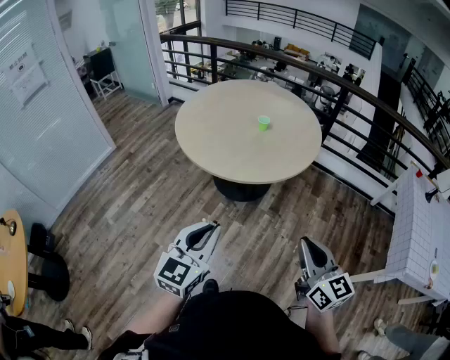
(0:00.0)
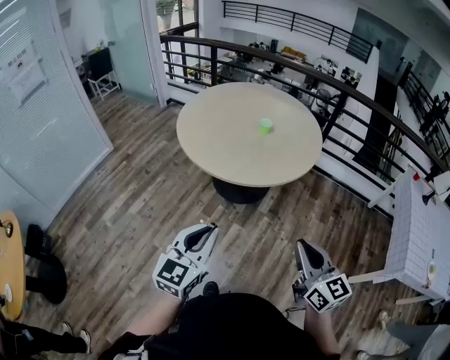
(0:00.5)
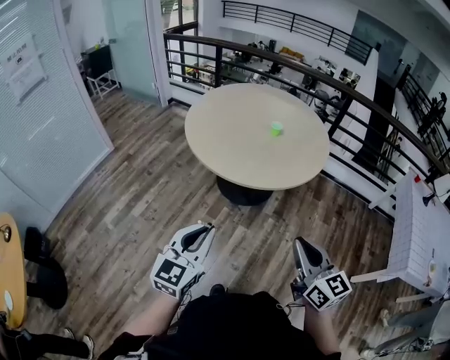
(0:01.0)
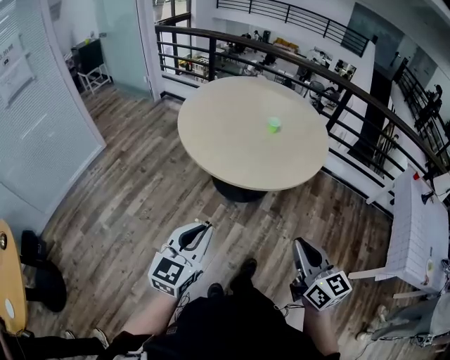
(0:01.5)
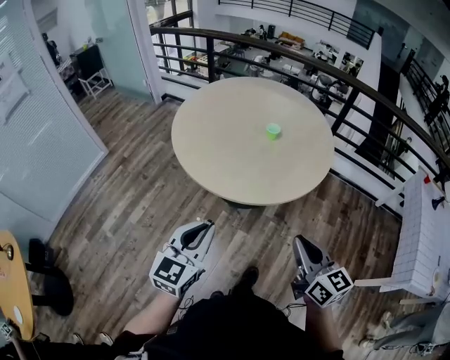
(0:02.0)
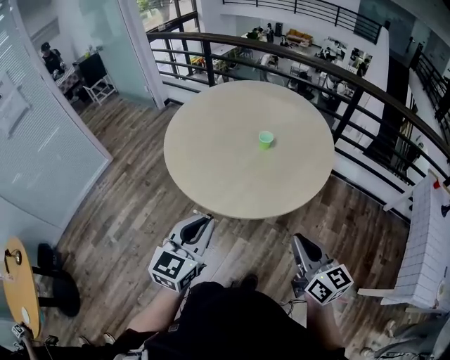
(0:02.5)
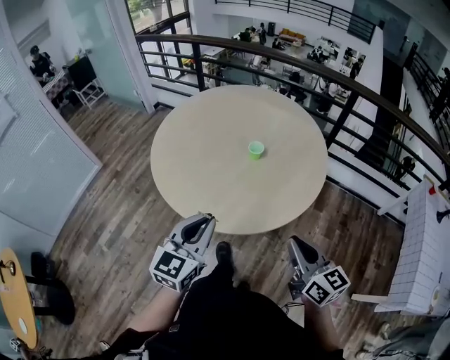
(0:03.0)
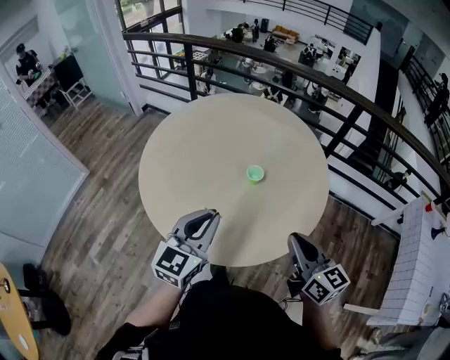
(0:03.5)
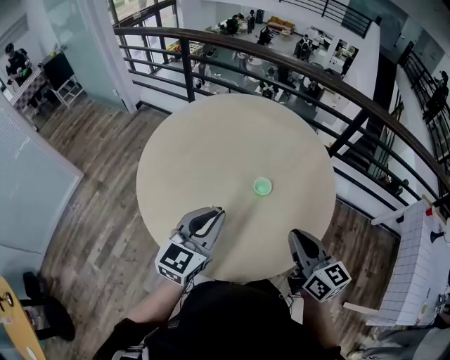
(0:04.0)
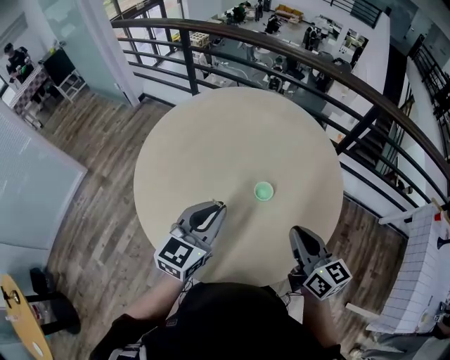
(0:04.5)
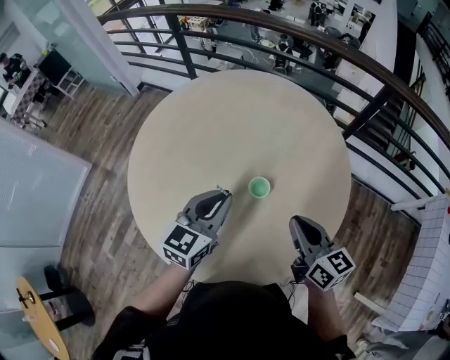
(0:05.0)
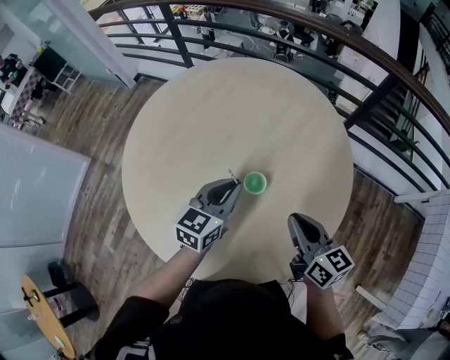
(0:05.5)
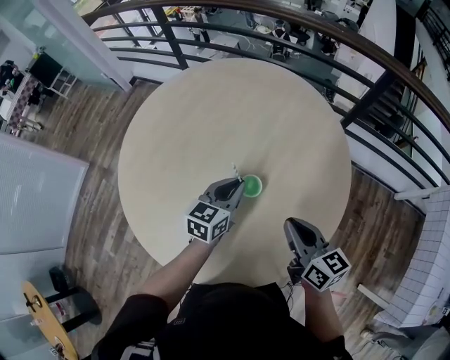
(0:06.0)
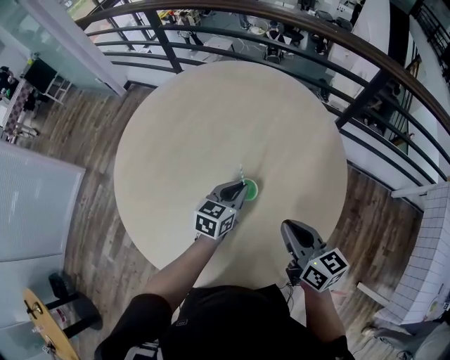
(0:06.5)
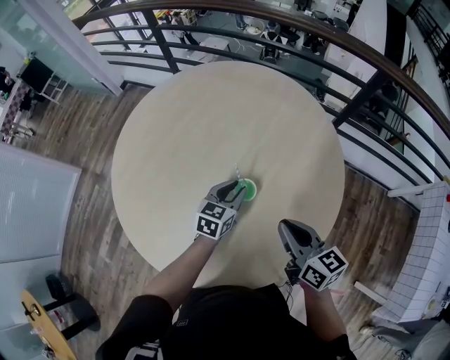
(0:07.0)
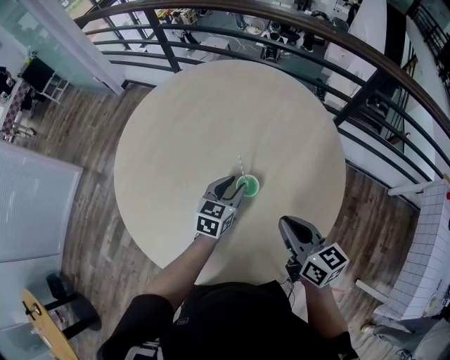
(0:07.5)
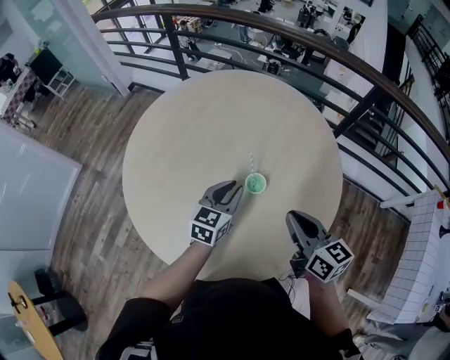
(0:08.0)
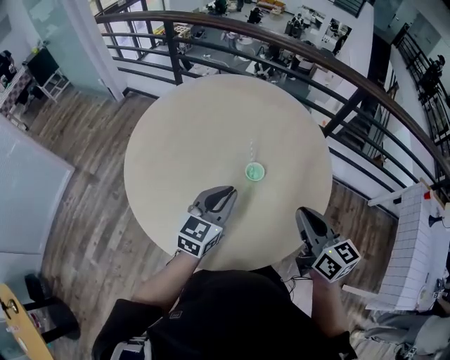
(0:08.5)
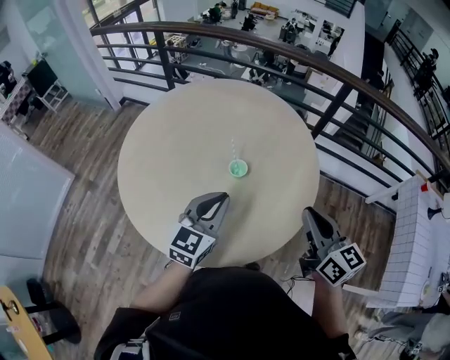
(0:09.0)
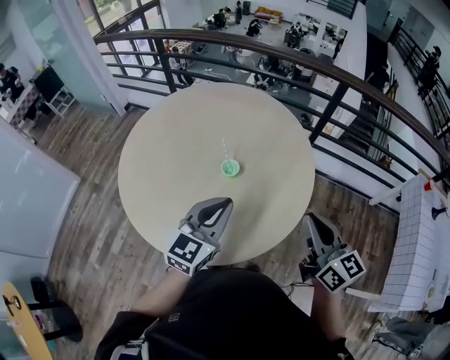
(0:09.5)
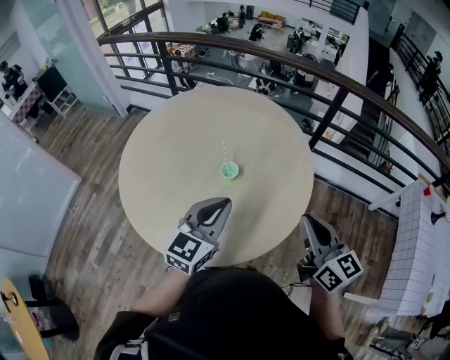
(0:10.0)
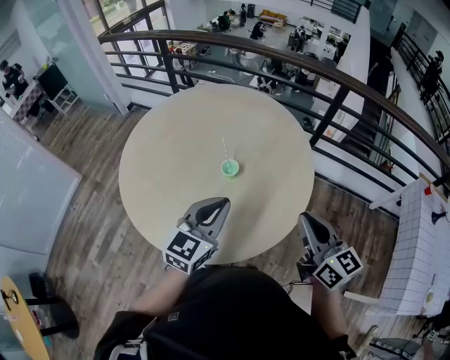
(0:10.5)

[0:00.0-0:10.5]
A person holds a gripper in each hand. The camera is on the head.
0:00.0 to 0:02.0: The grippers both shift forward and to the left by some 20 cm.
0:02.0 to 0:04.0: Both grippers travel together forward, about 40 cm.
0:04.0 to 0:06.5: The right gripper travels downward, forward and to the right by approximately 20 cm, while the left gripper goes about 35 cm downward, forward and to the right, and turns by some 30 degrees.
0:06.5 to 0:08.5: The left gripper is displaced upward, backward and to the left by roughly 25 cm, and opens, then closes once more, while the right gripper is displaced upward and backward by approximately 15 cm.
0:08.5 to 0:10.5: The left gripper travels to the right, backward and upward by some 15 cm, while the right gripper goes roughly 15 cm to the right and backward.

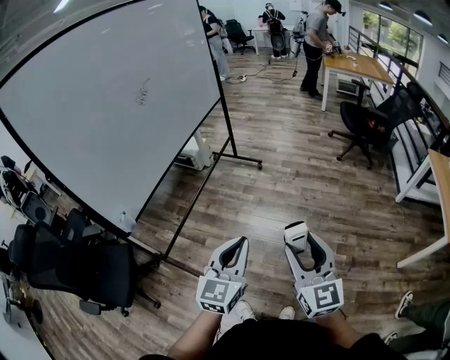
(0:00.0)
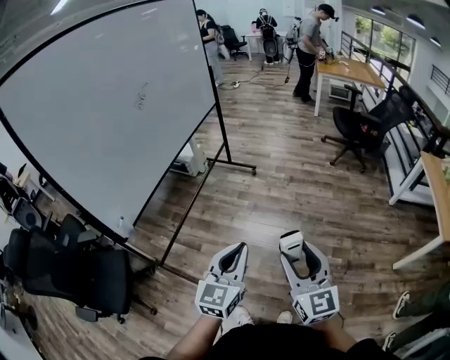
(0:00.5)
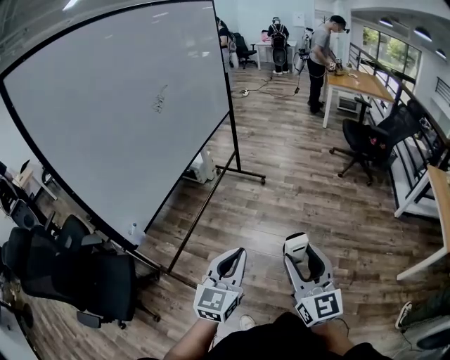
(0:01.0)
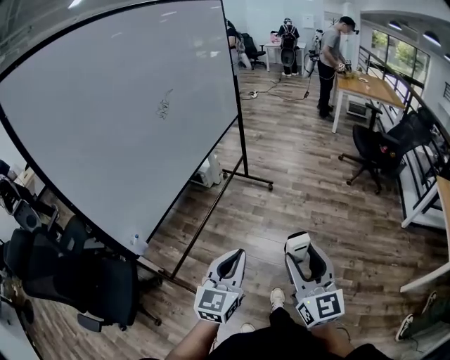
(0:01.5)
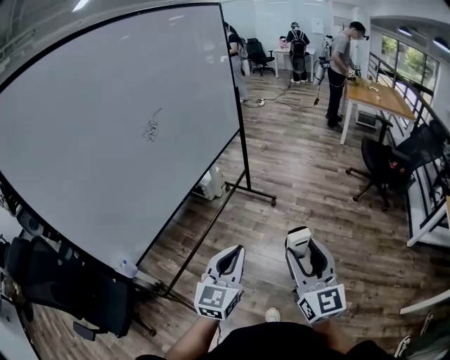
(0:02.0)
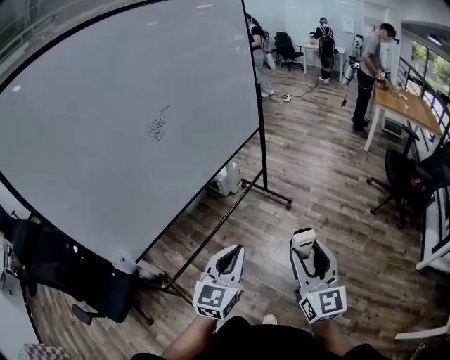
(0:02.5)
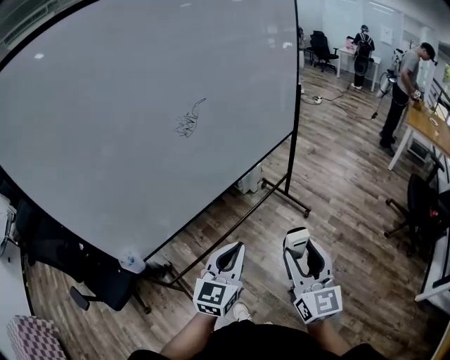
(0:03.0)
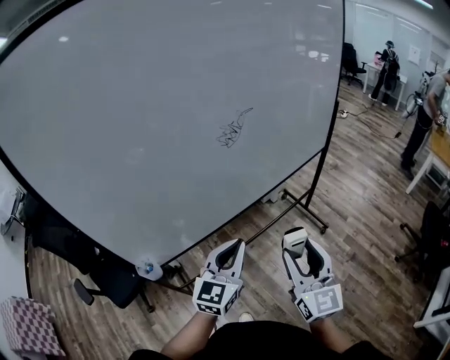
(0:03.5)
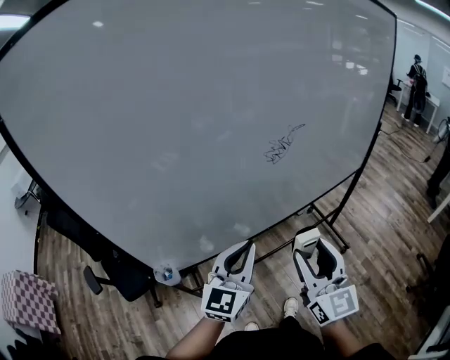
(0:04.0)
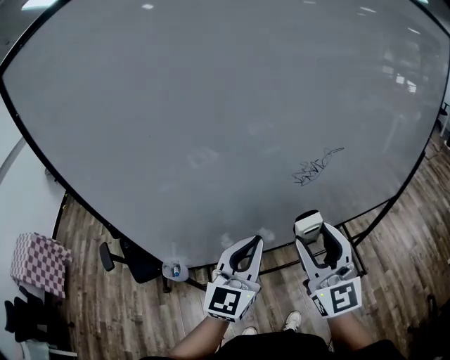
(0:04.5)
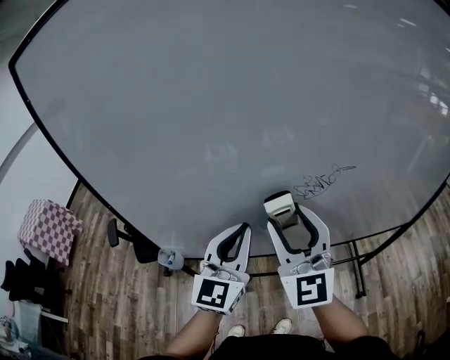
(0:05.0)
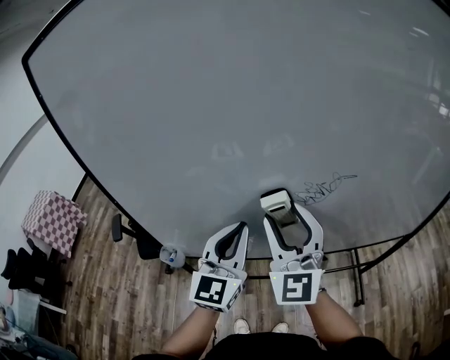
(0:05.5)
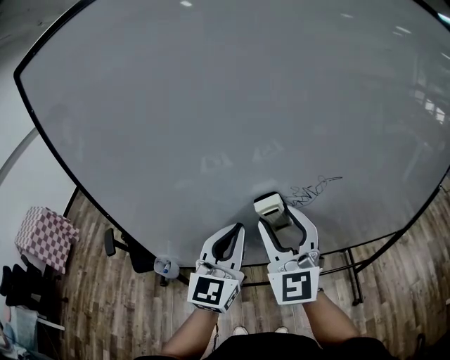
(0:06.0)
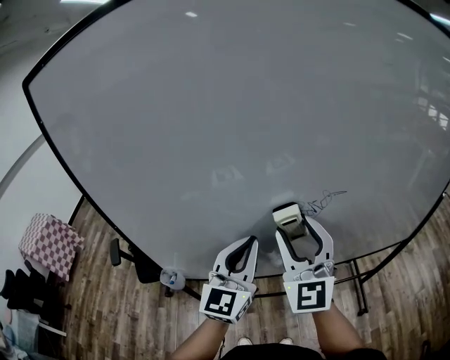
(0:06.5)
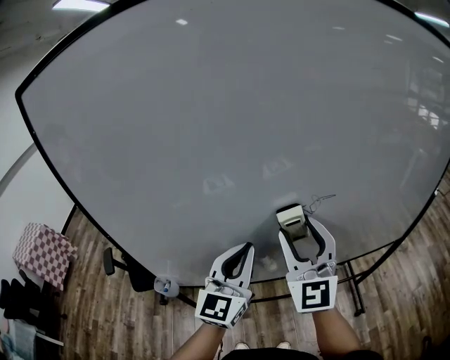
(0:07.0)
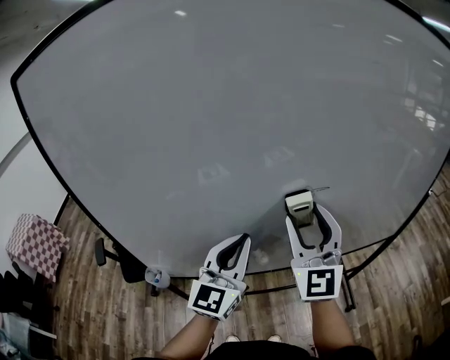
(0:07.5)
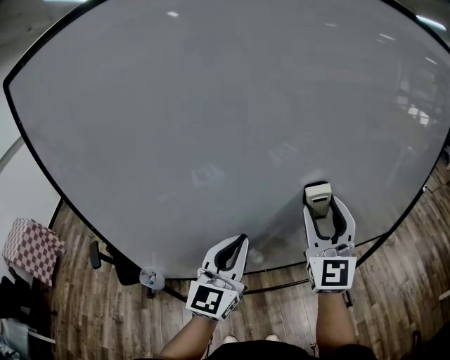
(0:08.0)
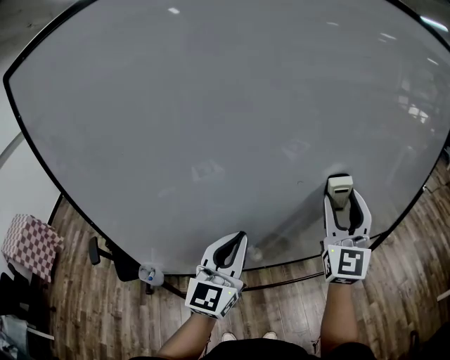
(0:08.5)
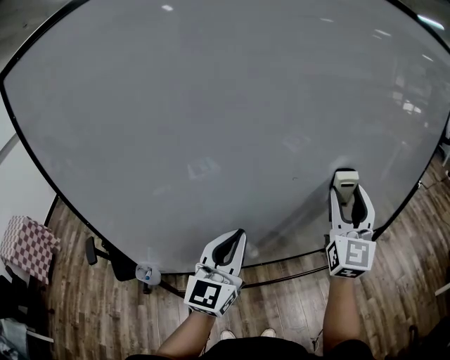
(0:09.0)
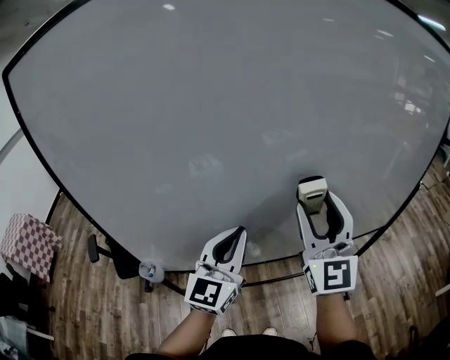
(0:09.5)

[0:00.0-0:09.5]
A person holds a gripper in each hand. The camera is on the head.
0:00.0 to 0:02.0: Both grippers move forward, about 25 cm.
0:02.0 to 0:04.0: The left gripper shifts by approximately 35 cm, and rotates roughly 40 degrees. The right gripper shifts by roughly 40 cm, and changes its angle by approximately 40 degrees.
0:04.0 to 0:05.5: The left gripper shifts by roughly 10 cm, and turns by about 30 degrees. Meanwhile the right gripper ends up roughly 20 cm from where it was, and rotates about 40 degrees.
0:05.5 to 0:07.5: The right gripper travels to the right by some 10 cm. The left gripper moves to the right, roughly 5 cm.
0:07.5 to 0:09.5: The right gripper goes to the right and returns, some 10 cm each way.

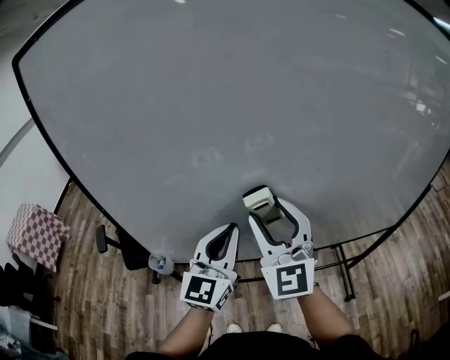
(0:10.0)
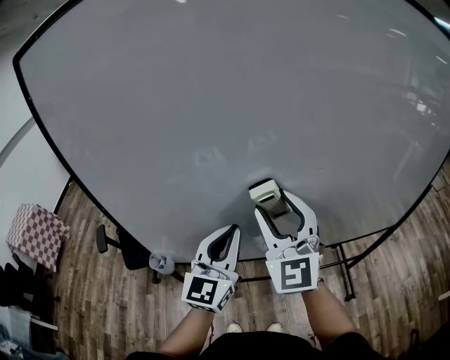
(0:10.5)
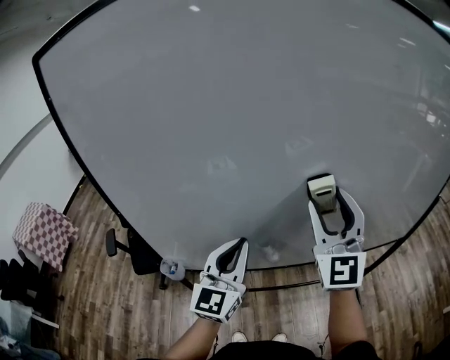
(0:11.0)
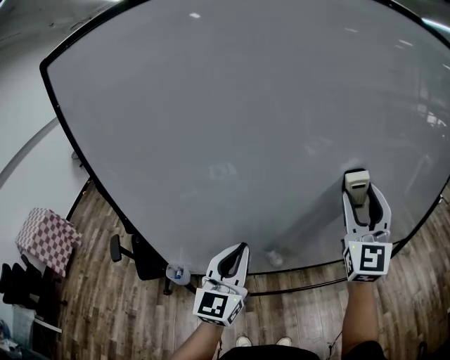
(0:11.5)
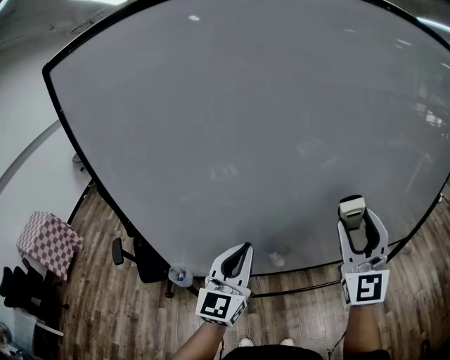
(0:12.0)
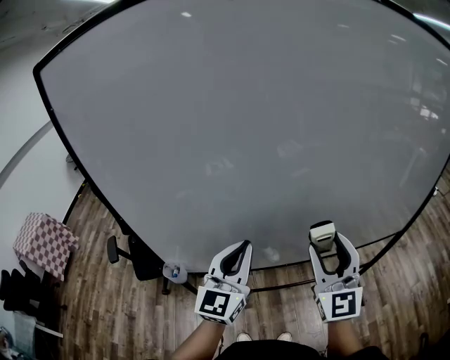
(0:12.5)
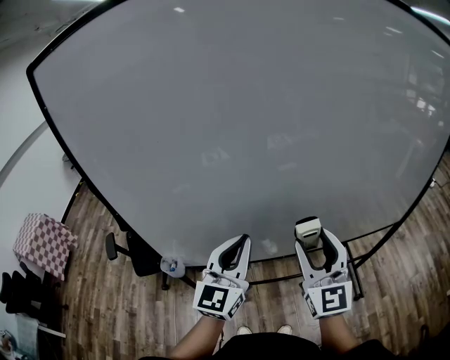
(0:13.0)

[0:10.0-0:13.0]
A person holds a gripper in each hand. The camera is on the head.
0:10.0 to 0:11.5: The right gripper moves to the right, some 20 cm, and turns by roughly 20 degrees.
0:11.5 to 0:13.0: The right gripper is displaced downward, backward and to the left by roughly 15 cm.

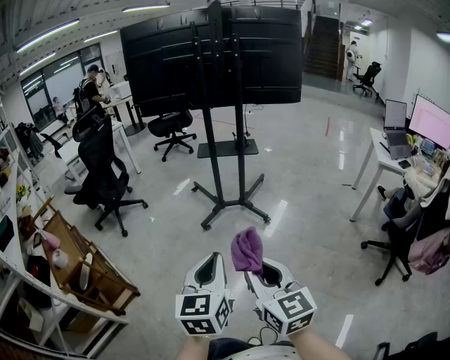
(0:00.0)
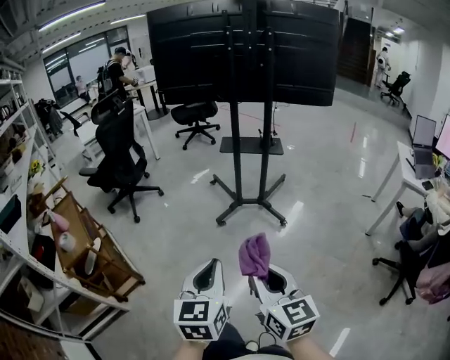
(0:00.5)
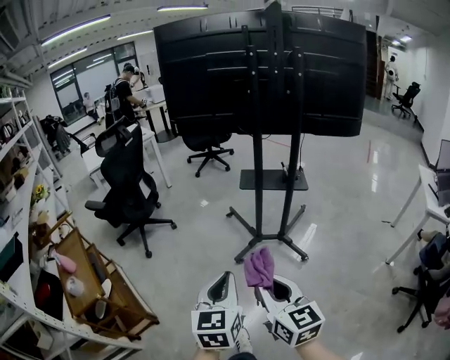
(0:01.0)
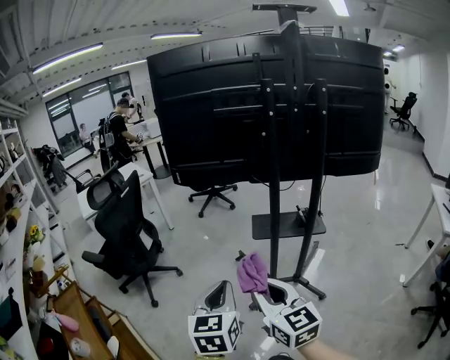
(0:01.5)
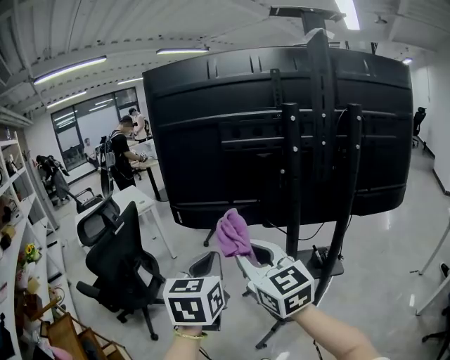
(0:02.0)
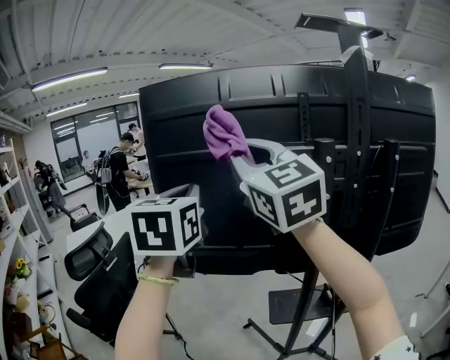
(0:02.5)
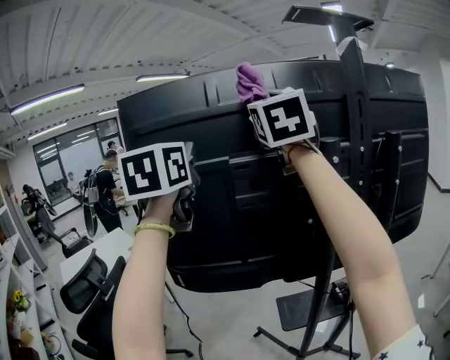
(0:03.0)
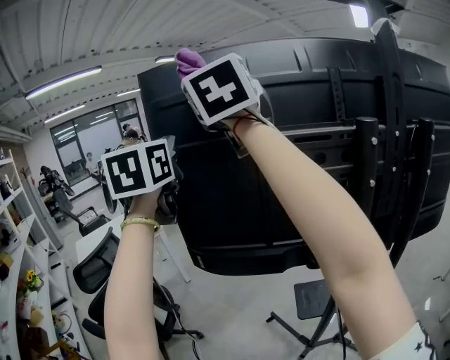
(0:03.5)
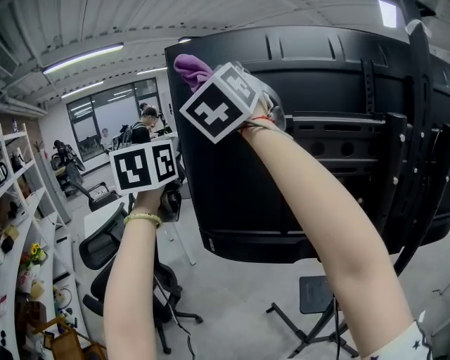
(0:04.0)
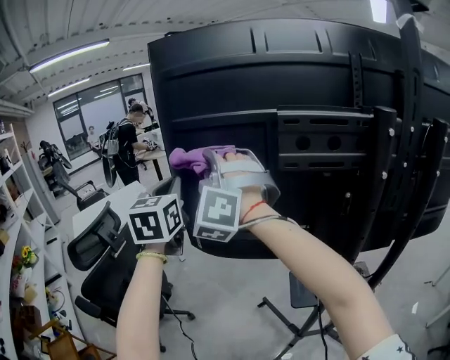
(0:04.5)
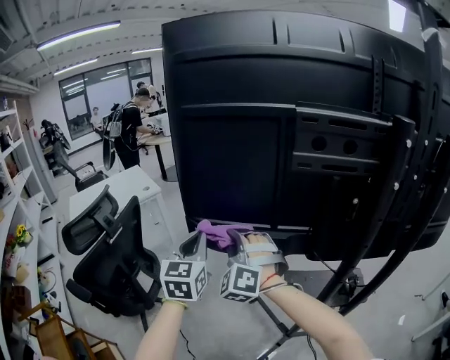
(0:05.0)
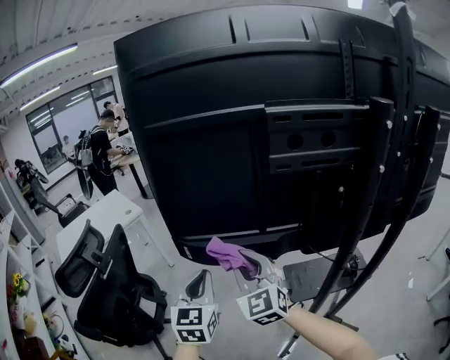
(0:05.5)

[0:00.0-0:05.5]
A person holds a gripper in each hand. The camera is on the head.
0:00.0 to 0:02.0: The pair of grippers is taken forward, approximately 80 cm. The right gripper swivels roughly 20 degrees.
0:02.0 to 0:03.5: The right gripper heads upward and forward, covering about 50 cm, and swivels roughly 30 degrees, while the left gripper moves forward and upward, approximately 40 cm, and turns by about 20 degrees.
0:03.5 to 0:05.5: Both grippers move downward, approximately 40 cm.
